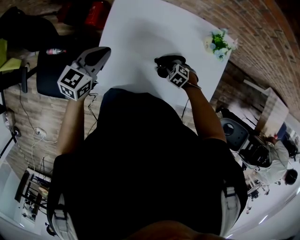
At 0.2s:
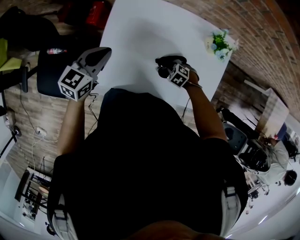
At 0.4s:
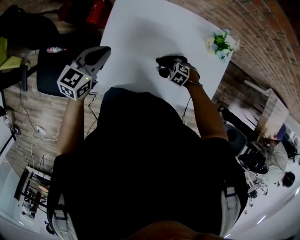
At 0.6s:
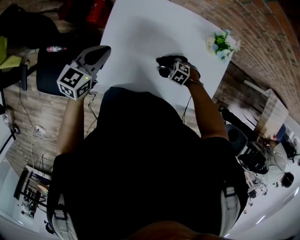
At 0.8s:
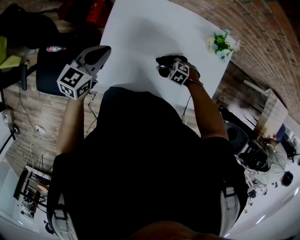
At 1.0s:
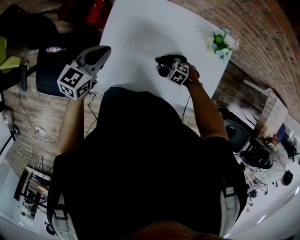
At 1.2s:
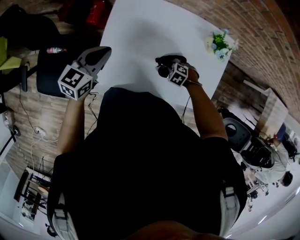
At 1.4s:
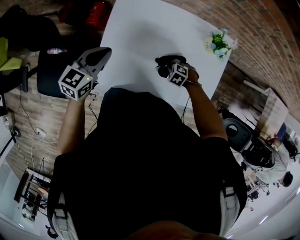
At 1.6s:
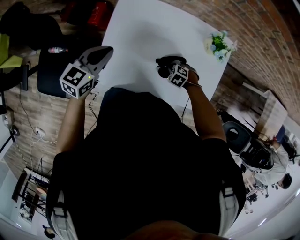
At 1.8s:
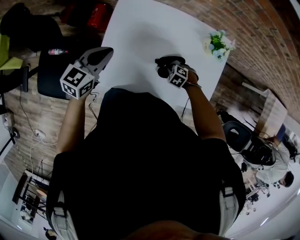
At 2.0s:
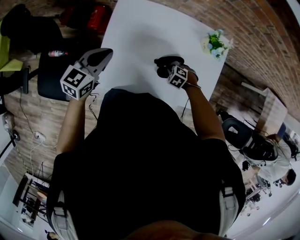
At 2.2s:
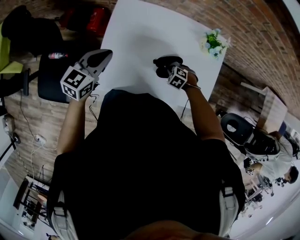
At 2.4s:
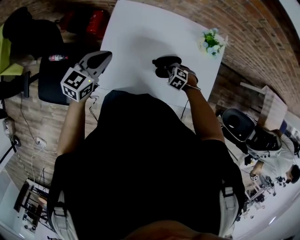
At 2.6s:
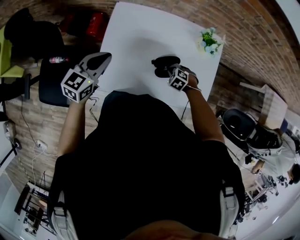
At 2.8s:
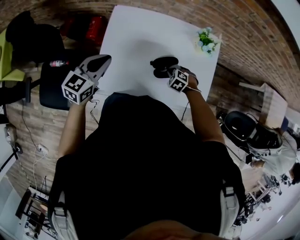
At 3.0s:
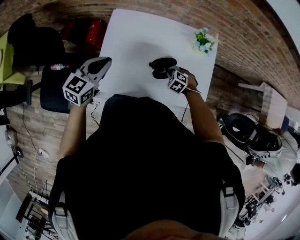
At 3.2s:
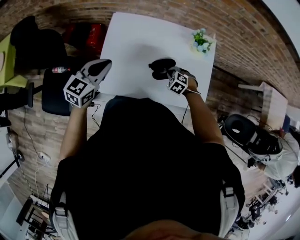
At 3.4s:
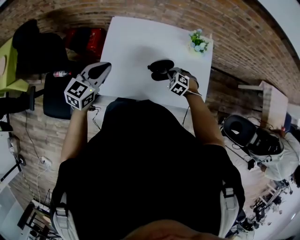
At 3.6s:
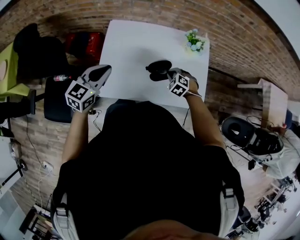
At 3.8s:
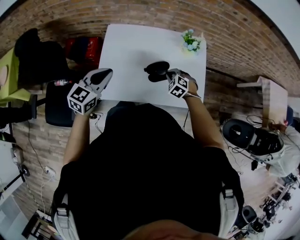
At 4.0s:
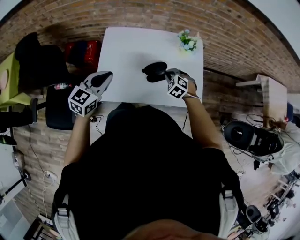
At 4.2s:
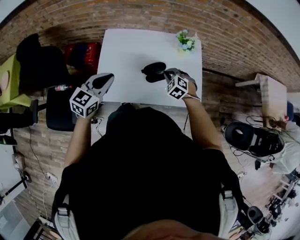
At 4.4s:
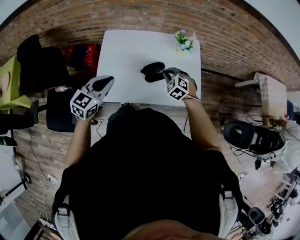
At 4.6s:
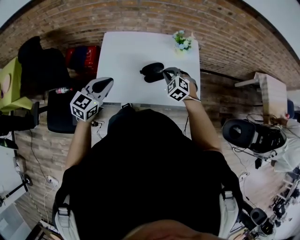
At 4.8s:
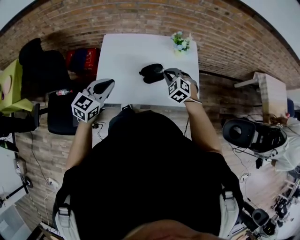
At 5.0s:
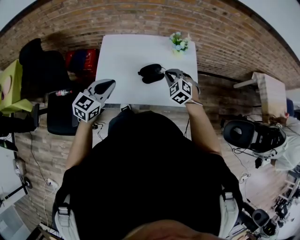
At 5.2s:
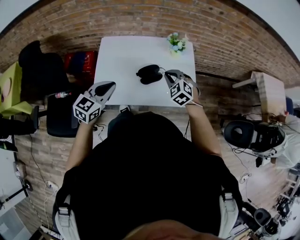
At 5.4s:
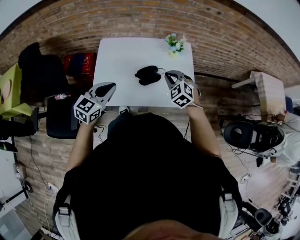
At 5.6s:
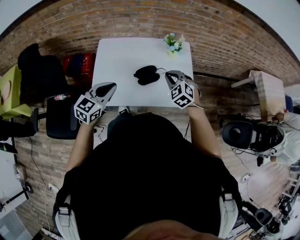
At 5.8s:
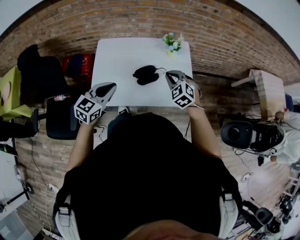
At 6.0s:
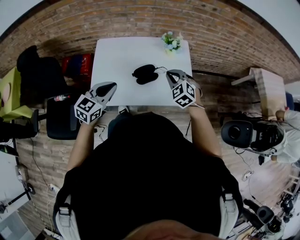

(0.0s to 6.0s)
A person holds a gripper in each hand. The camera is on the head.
0.0s - 1.6s: There are only small adjustments of the grippers.
1.6s - 3.0s: The left gripper changes place by some 10 cm. Meanwhile the right gripper shifts some 5 cm upward.
3.0s - 4.4s: The left gripper is displaced backward and to the right by roughly 10 cm, while the right gripper moves upward, approximately 15 cm, and swivels roughly 20 degrees.
4.4s - 6.0s: The right gripper goes about 10 cm upward and to the right; the left gripper heads to the right, covering roughly 10 cm.

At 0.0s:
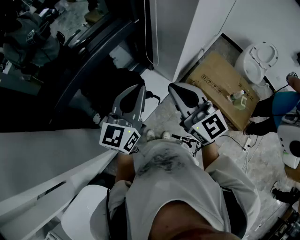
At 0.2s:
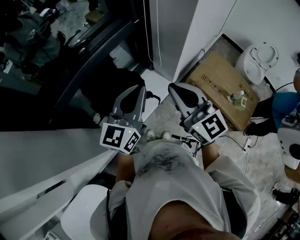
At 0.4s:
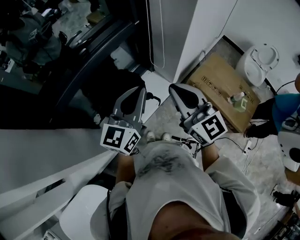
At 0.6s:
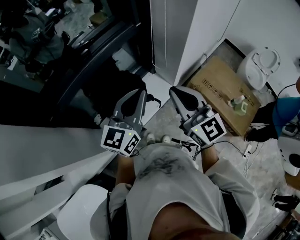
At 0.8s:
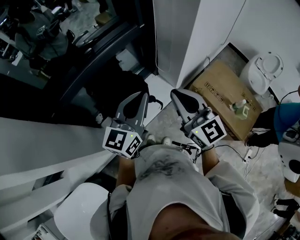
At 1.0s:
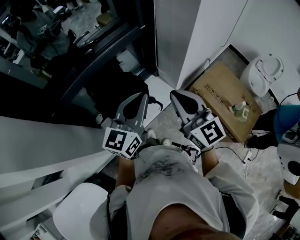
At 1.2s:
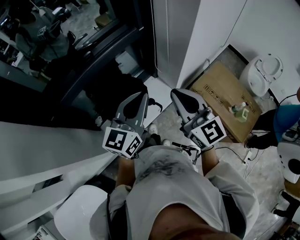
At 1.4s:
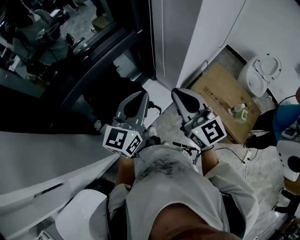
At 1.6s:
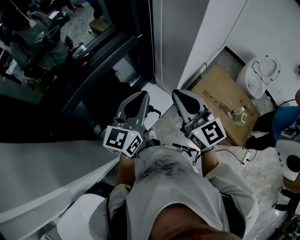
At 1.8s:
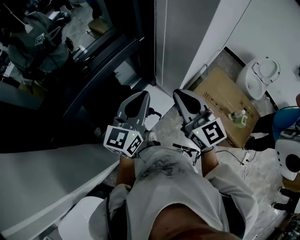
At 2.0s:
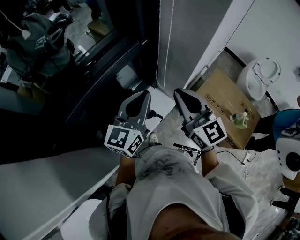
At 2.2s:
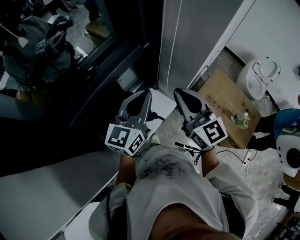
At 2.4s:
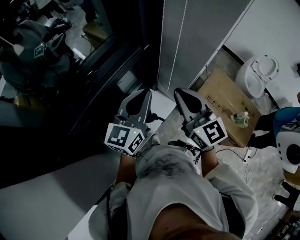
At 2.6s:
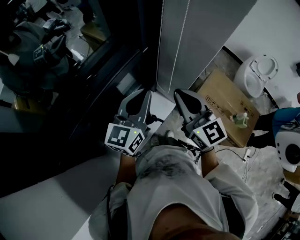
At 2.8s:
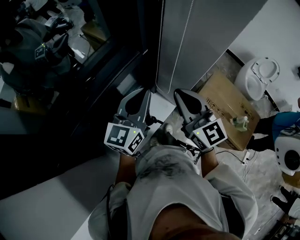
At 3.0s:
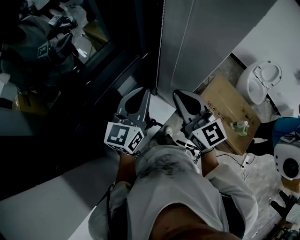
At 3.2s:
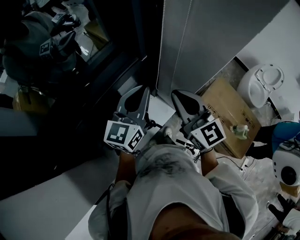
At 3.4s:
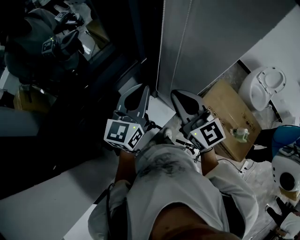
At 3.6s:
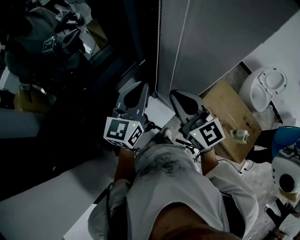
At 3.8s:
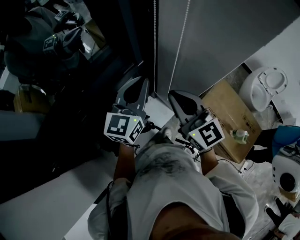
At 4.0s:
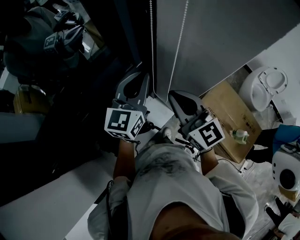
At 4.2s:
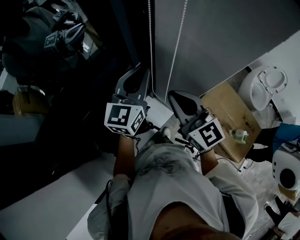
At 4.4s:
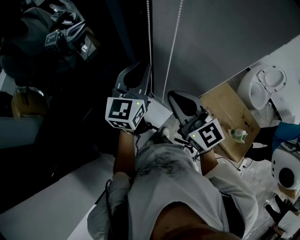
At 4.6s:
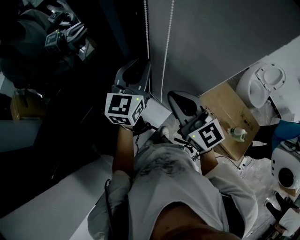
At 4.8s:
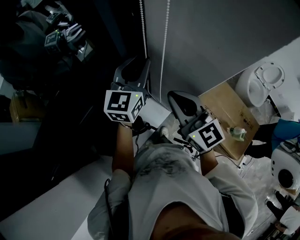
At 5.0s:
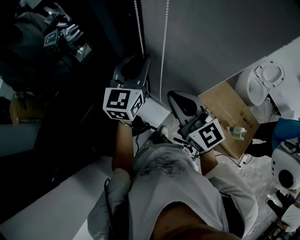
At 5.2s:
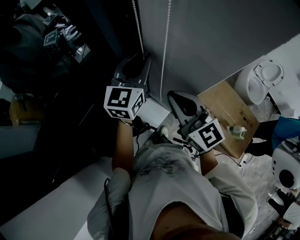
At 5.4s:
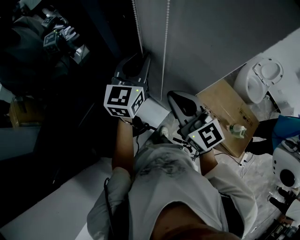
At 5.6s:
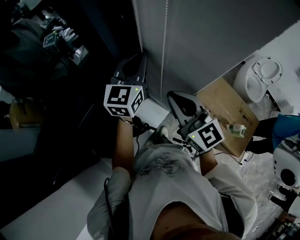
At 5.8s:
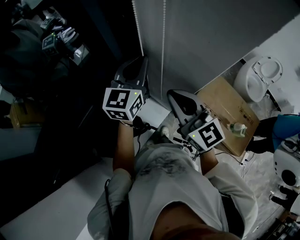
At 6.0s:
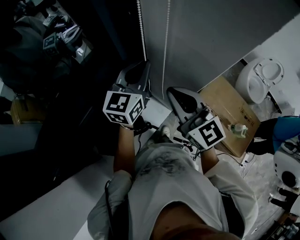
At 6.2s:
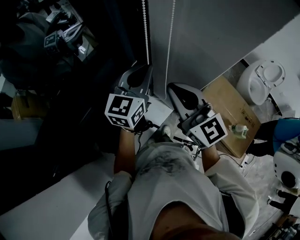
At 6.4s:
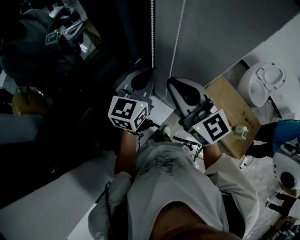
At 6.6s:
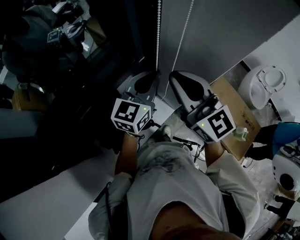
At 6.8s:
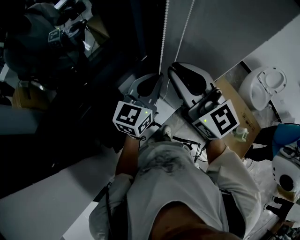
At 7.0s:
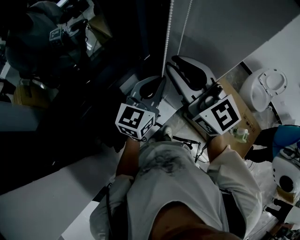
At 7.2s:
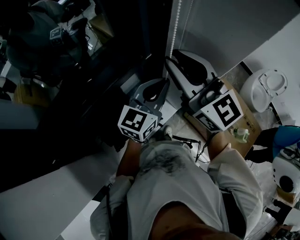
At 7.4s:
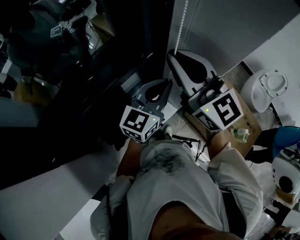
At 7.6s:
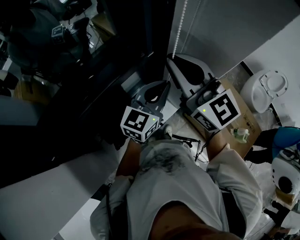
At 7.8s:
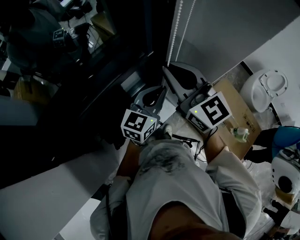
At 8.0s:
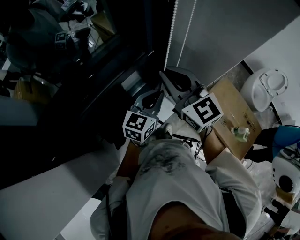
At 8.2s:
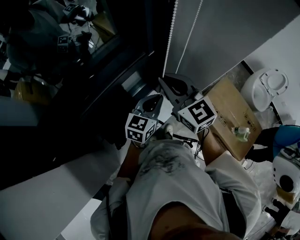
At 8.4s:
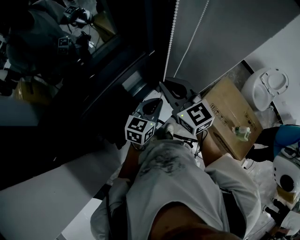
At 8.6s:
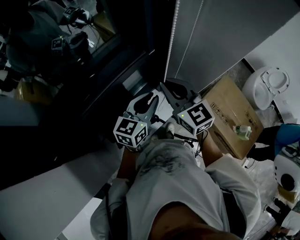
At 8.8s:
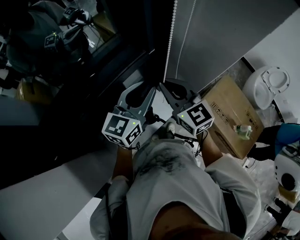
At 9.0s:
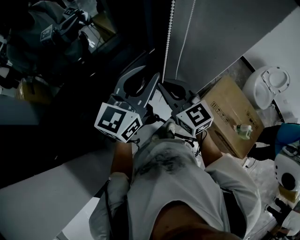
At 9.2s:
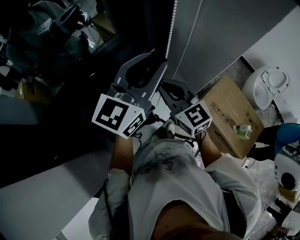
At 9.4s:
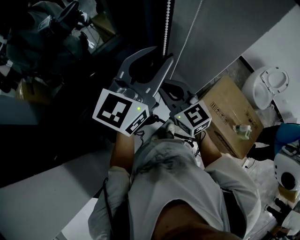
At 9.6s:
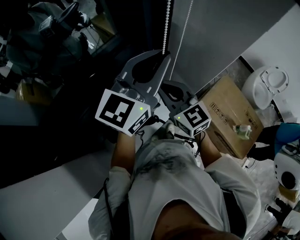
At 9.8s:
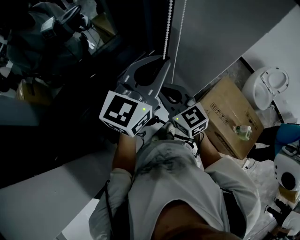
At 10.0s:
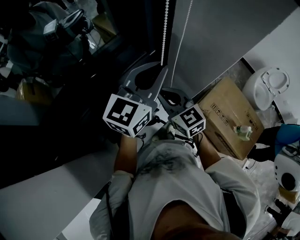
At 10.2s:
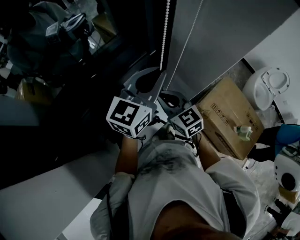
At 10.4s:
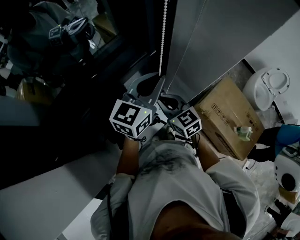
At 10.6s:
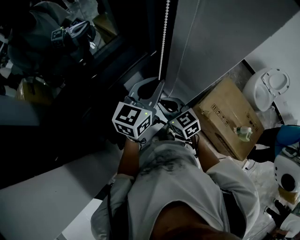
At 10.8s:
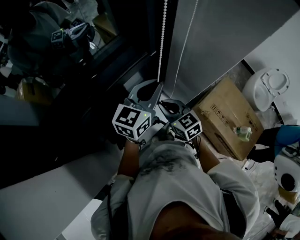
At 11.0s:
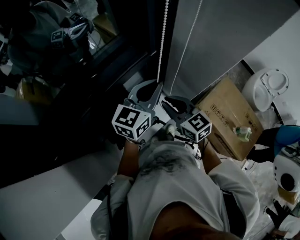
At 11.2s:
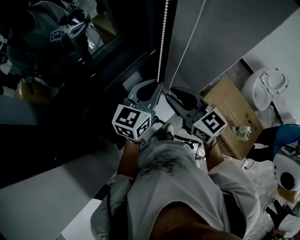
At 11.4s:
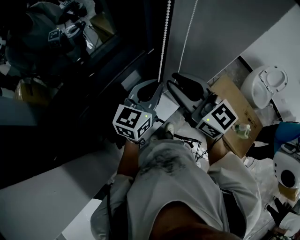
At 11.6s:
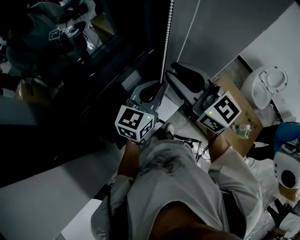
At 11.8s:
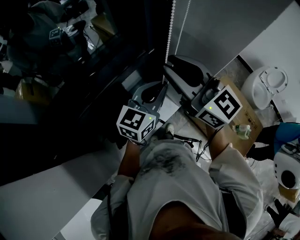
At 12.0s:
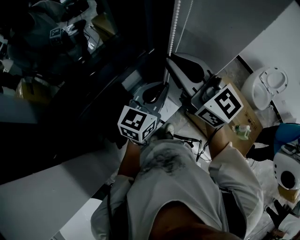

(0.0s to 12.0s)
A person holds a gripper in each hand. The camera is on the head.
0.0s - 1.6s: The two grippers go some 5 cm forward.
1.6s - 3.0s: The two grippers go about 15 cm forward.
3.0s - 4.4s: The left gripper travels forward and to the right by roughly 15 cm, while the right gripper moves forward, about 5 cm.
4.4s - 6.0s: The grippers stay close to where they were, moving slightly.
6.0s - 7.6s: The left gripper shifts approximately 10 cm backward. The right gripper shifts about 15 cm upward and to the left.
7.6s - 9.0s: The right gripper goes approximately 15 cm downward; the left gripper moves upward and to the left, approximately 10 cm, and opens up.
9.0s - 10.4s: The right gripper moves downward, about 10 cm; the left gripper is displaced downward by some 5 cm.
10.4s - 12.0s: The right gripper moves upward, roughly 25 cm, and tips its fingers upward by roughly 30 degrees.

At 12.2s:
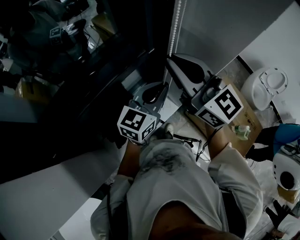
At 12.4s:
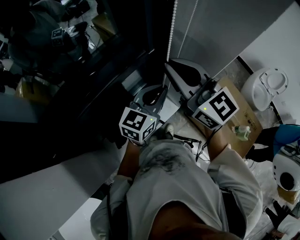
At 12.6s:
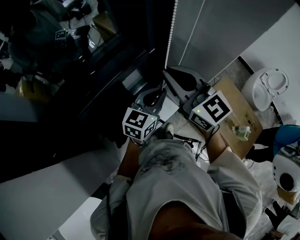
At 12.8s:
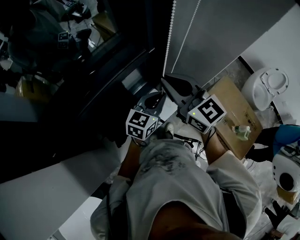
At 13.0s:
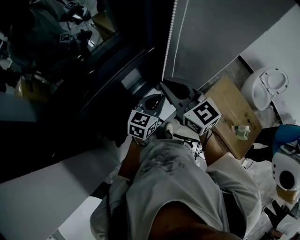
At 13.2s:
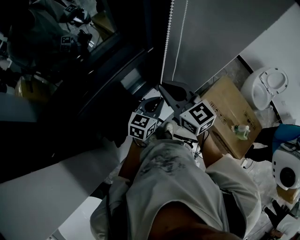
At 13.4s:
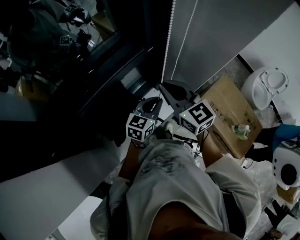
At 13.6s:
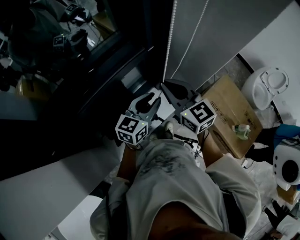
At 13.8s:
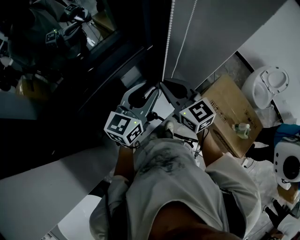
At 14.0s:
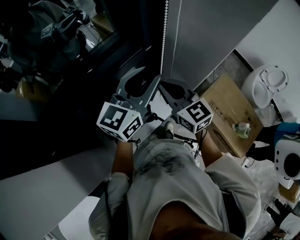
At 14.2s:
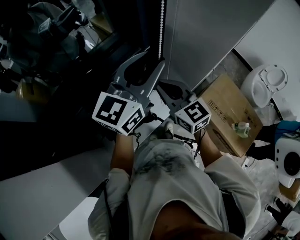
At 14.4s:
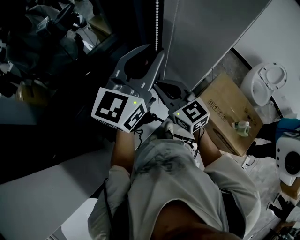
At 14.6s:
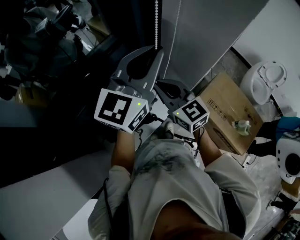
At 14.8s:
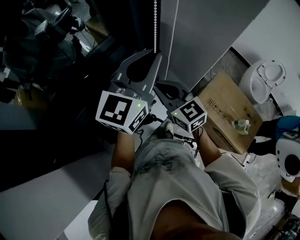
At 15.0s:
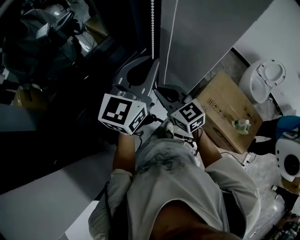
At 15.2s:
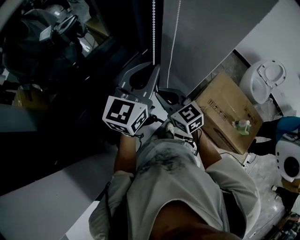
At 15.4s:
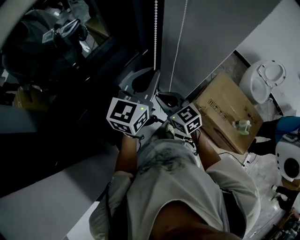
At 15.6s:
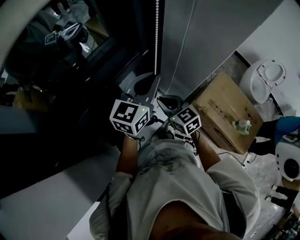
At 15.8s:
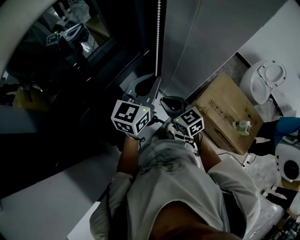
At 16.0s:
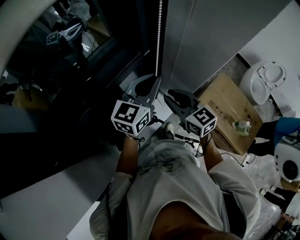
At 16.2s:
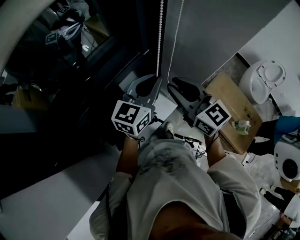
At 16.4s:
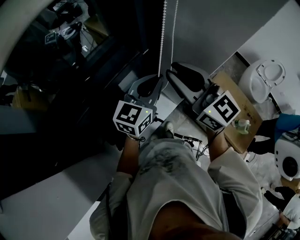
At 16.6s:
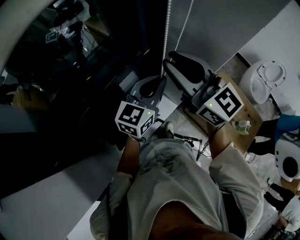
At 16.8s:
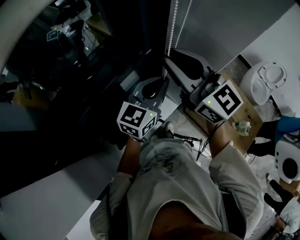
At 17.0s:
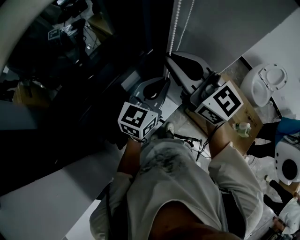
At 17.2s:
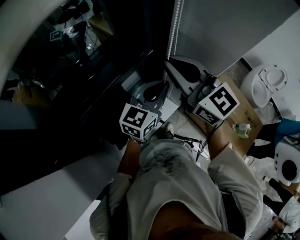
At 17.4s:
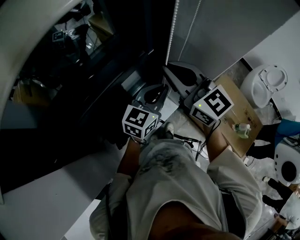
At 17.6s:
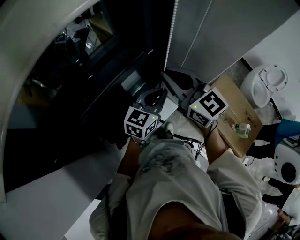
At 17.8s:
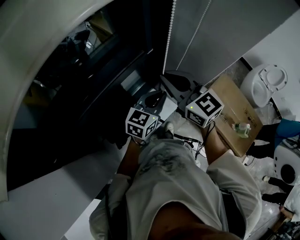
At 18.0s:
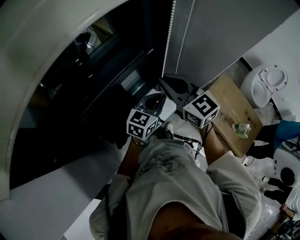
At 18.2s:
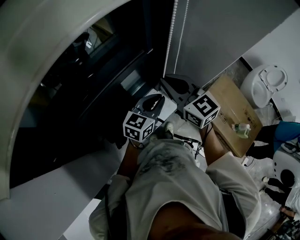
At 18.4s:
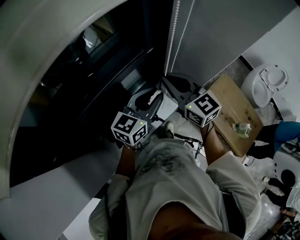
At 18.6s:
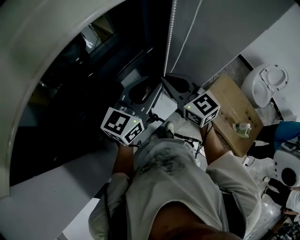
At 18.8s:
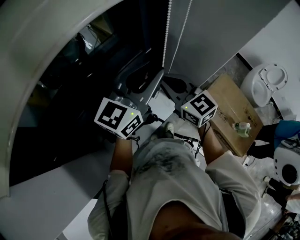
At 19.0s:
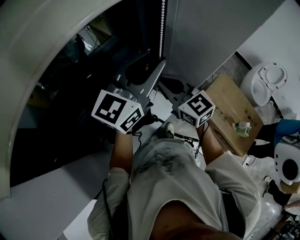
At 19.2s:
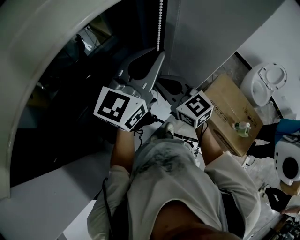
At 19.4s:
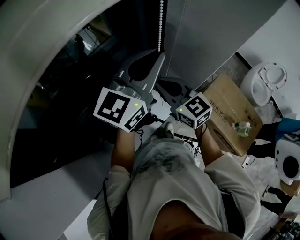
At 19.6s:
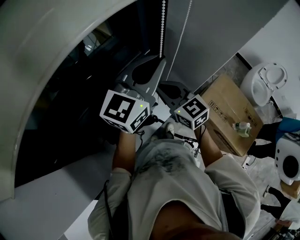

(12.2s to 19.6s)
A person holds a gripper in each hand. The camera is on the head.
12.2s - 13.6s: The right gripper moves downward, approximately 15 cm; the left gripper goes some 10 cm downward, and opens its fingers.
13.6s - 15.2s: The left gripper shifts about 15 cm upward, and closes its fingers. Meanwhile the right gripper heads downward, covering some 5 cm.
15.2s - 16.6s: The right gripper goes about 20 cm upward, and changes its angle by about 30 degrees; the left gripper moves downward, approximately 5 cm.
16.6s - 18.2s: The two grippers go about 10 cm downward.
18.2s - 19.6s: The left gripper is displaced upward by approximately 20 cm, and changes its angle by approximately 30 degrees.
